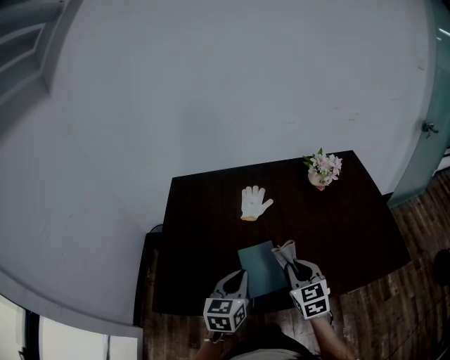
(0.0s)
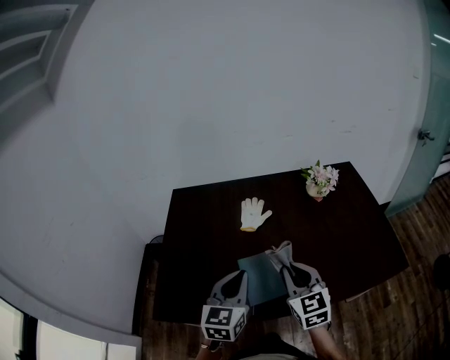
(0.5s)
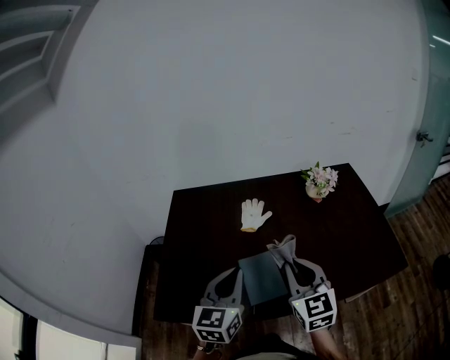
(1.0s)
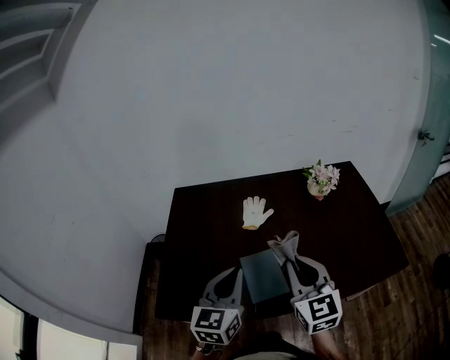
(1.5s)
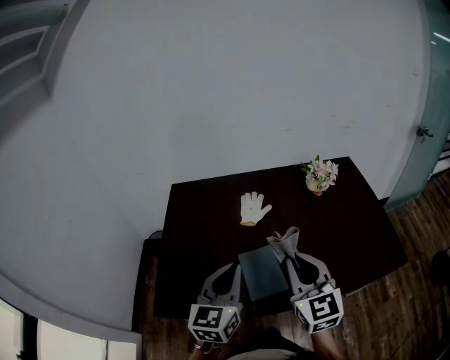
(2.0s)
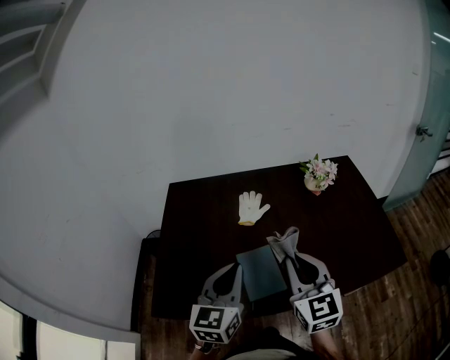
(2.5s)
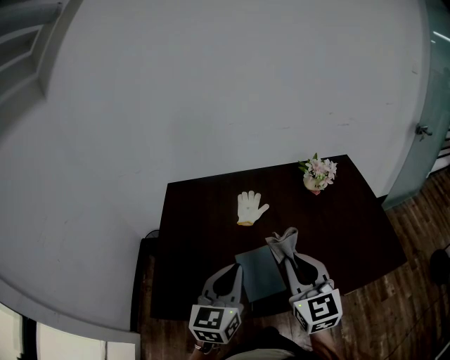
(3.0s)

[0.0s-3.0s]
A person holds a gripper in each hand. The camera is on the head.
0.0s to 1.5s: Both grippers travel together upward, some 15 cm.
1.5s to 3.0s: The grippers move only a little.

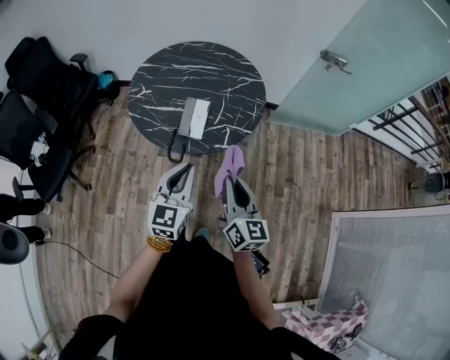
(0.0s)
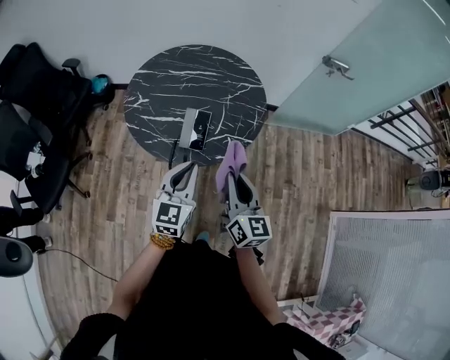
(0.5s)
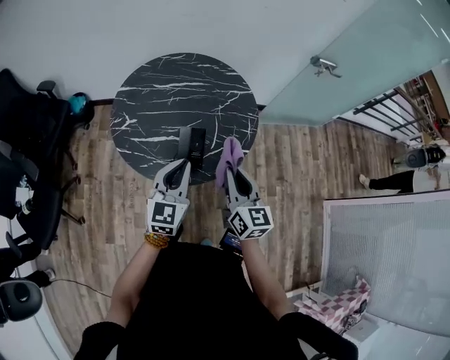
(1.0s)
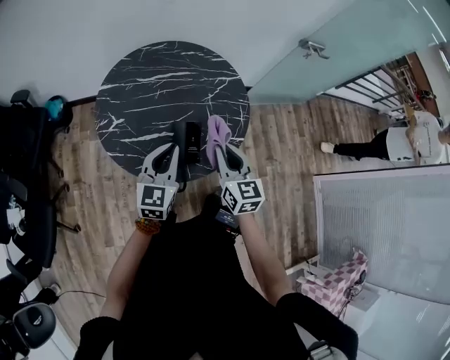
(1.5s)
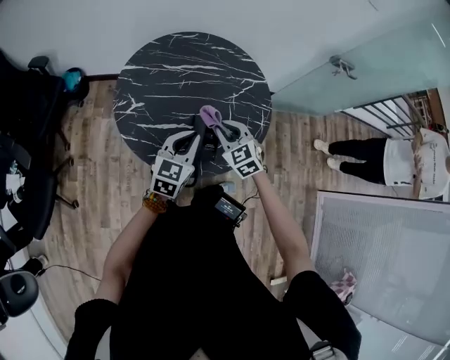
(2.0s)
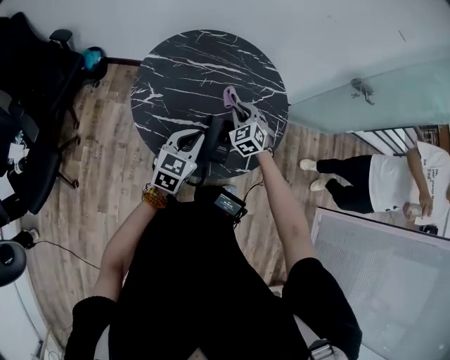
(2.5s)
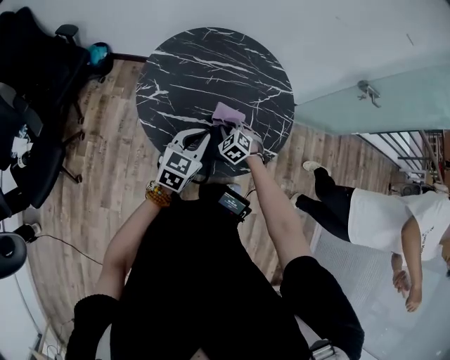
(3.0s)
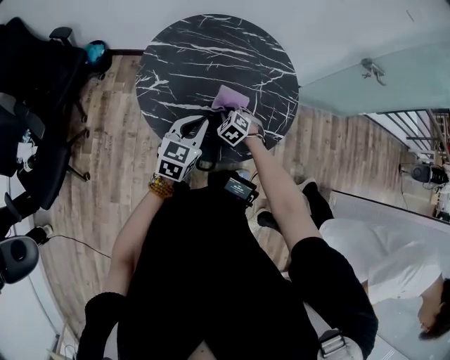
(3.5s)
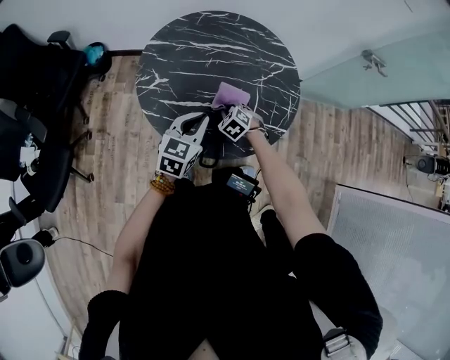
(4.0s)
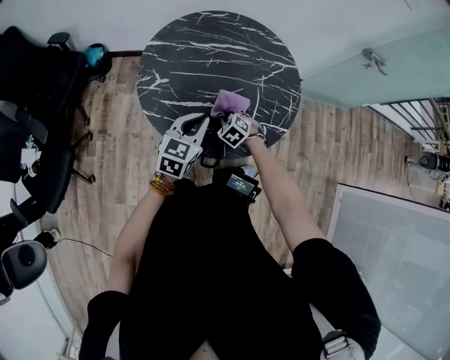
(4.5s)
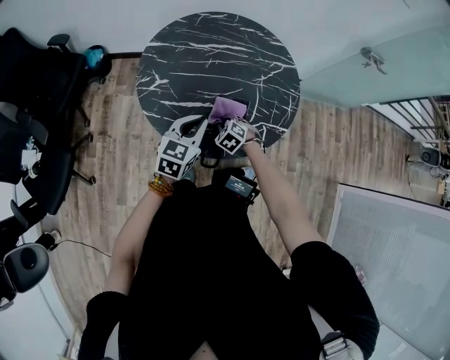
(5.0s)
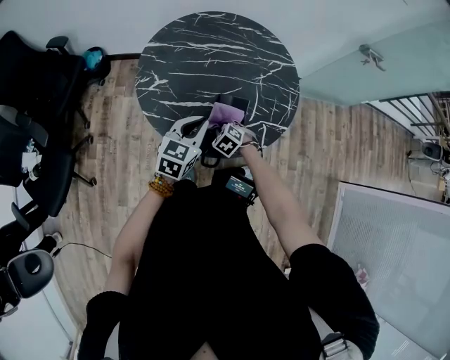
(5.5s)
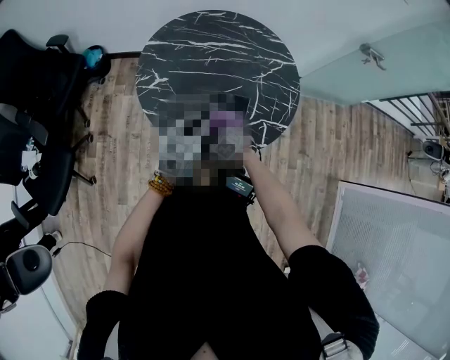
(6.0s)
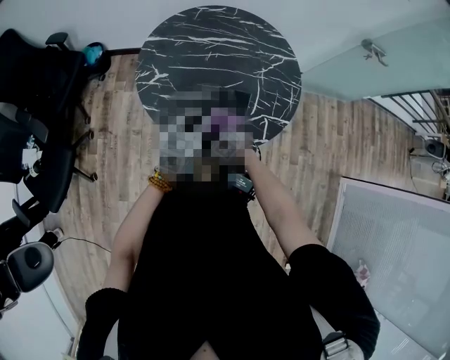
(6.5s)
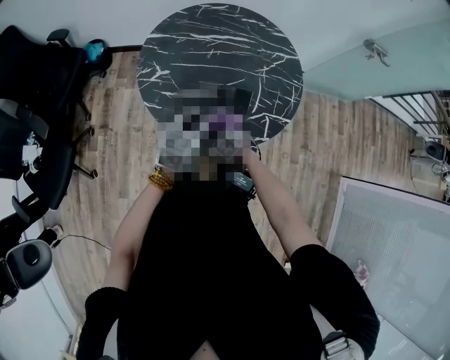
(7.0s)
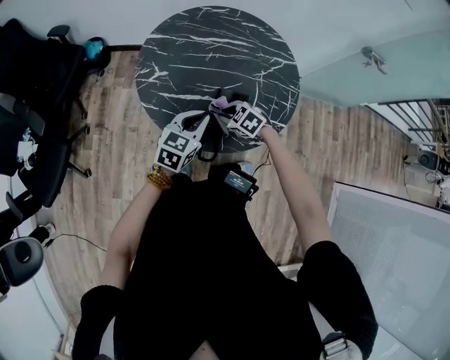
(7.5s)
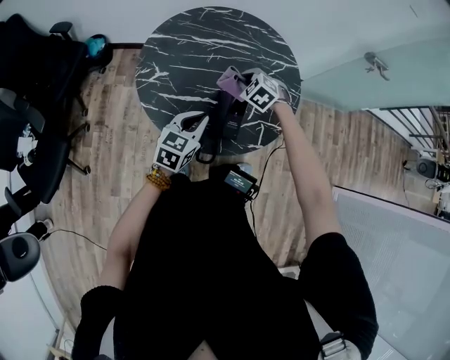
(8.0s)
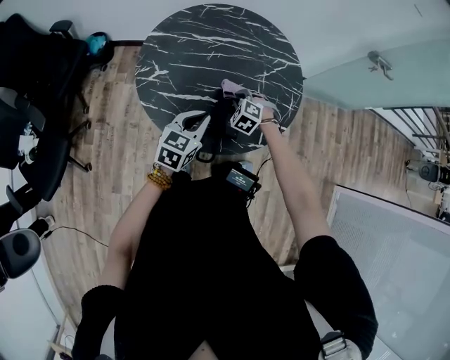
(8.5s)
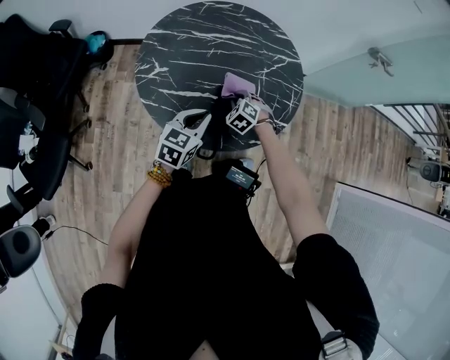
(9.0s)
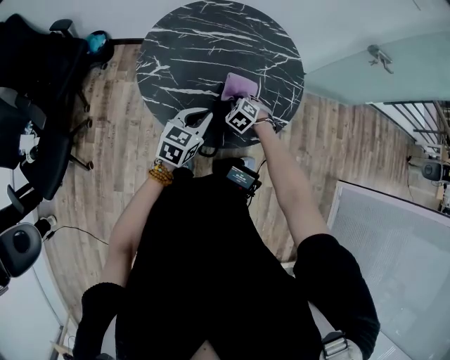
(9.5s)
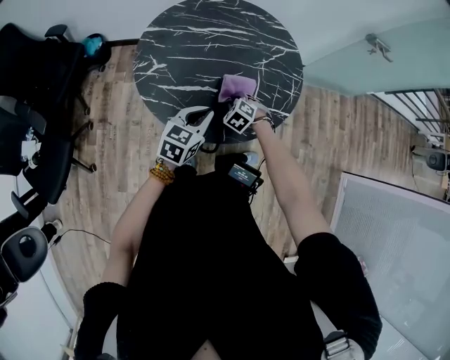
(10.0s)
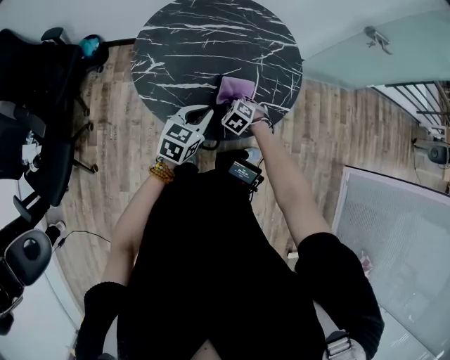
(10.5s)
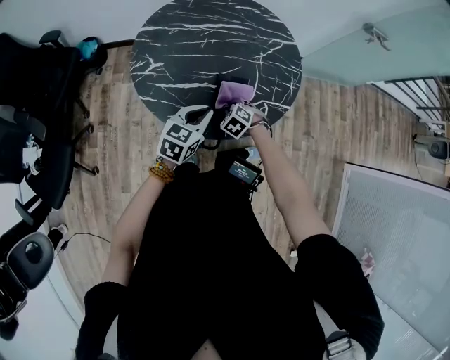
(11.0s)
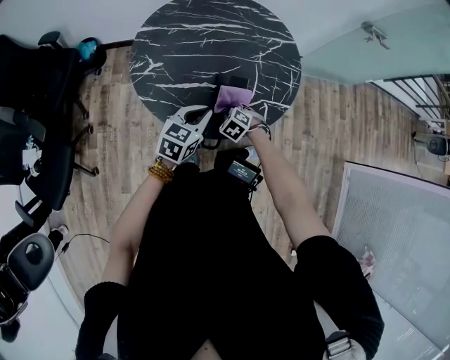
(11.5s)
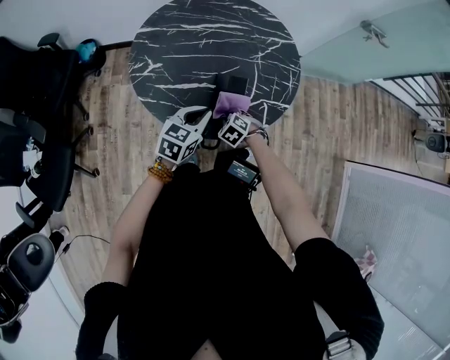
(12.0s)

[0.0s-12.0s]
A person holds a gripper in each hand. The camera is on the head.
0.0s to 2.0s: Both grippers travel together forward and to the left, roughly 30 cm. The right gripper rotates around the line of its fingers by roughly 50 degrees, counterclockwise from behind.
2.0s to 4.0s: The left gripper ends up approximately 5 cm from where it was; the right gripper heads downward, covering about 15 cm, and swivels about 30 degrees.
4.0s to 6.0s: The right gripper travels backward by about 10 cm.
6.0s to 8.0s: The right gripper shifts about 25 cm forward and upward.
8.0s to 10.0s: The right gripper shifts some 15 cm downward and backward.
10.0s to 12.0s: The right gripper goes some 10 cm backward.

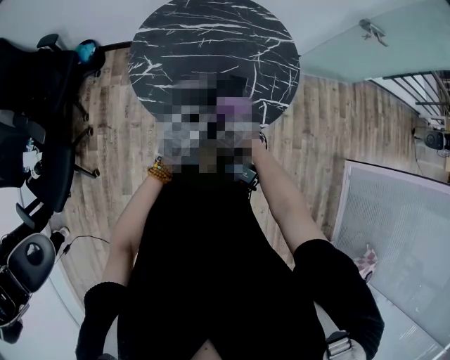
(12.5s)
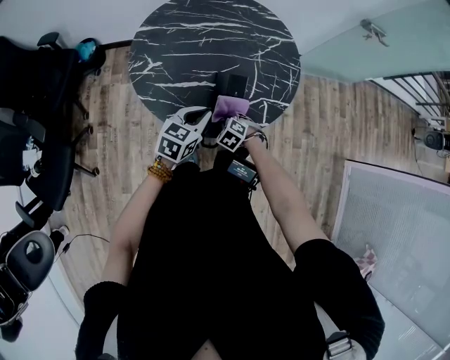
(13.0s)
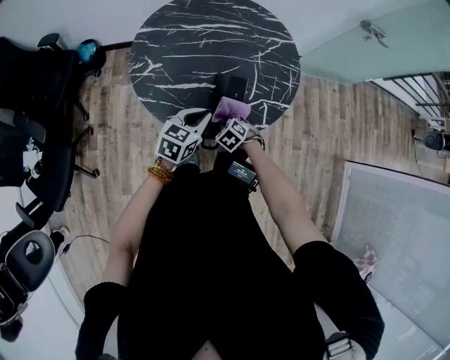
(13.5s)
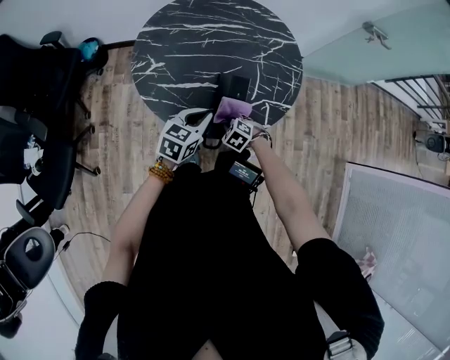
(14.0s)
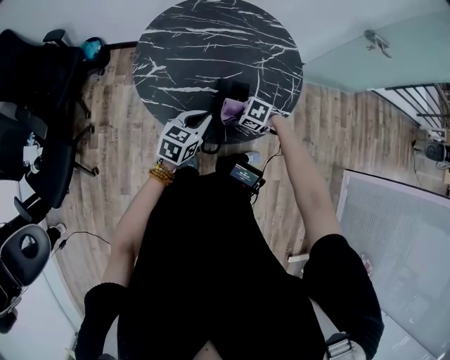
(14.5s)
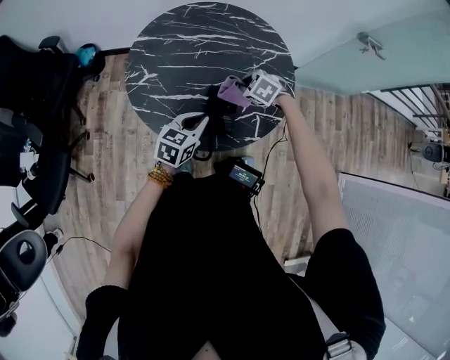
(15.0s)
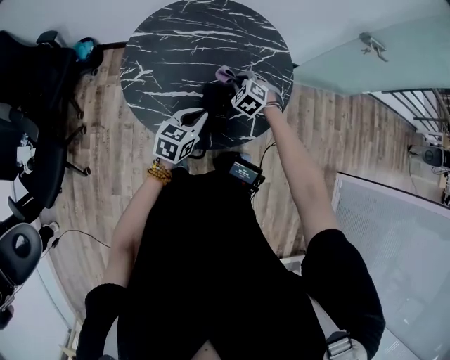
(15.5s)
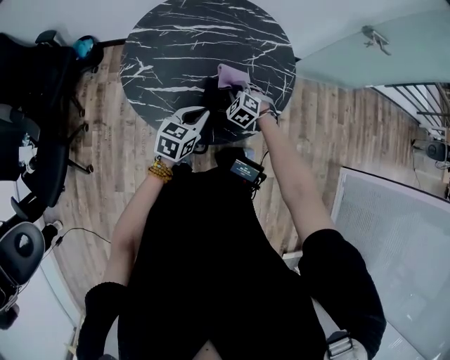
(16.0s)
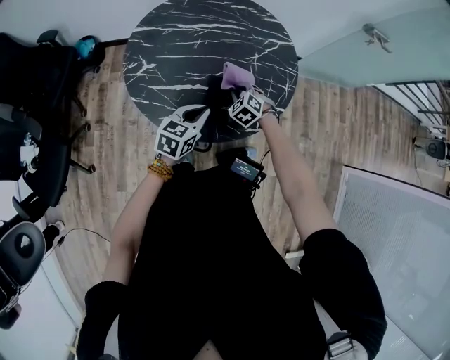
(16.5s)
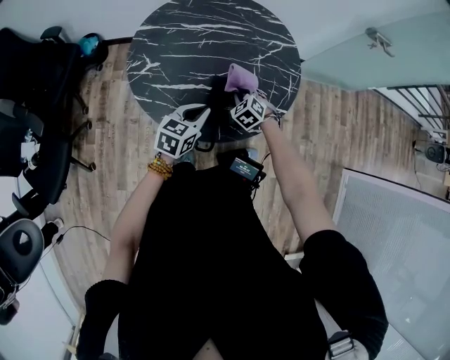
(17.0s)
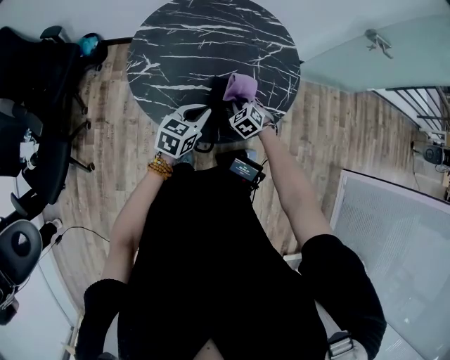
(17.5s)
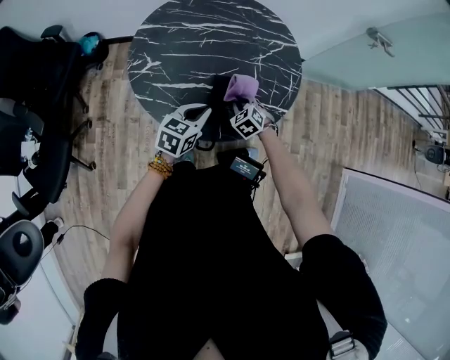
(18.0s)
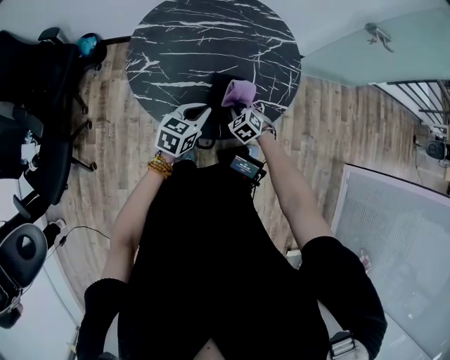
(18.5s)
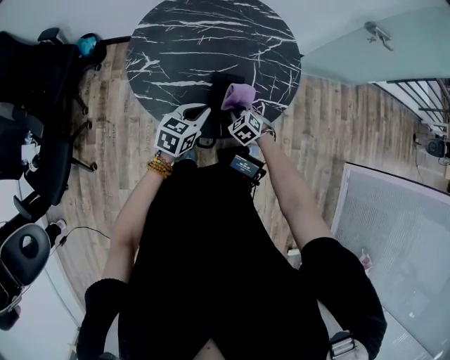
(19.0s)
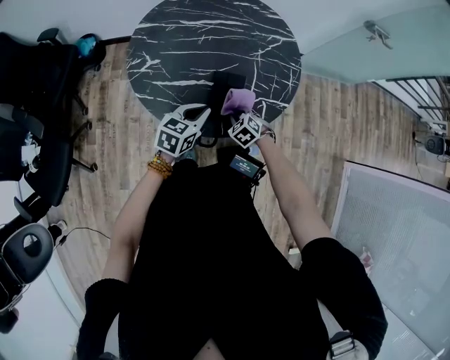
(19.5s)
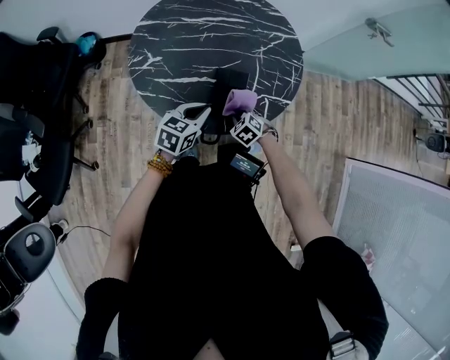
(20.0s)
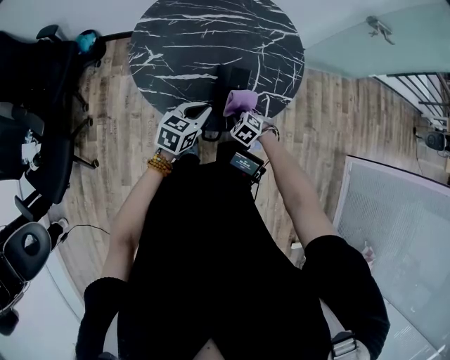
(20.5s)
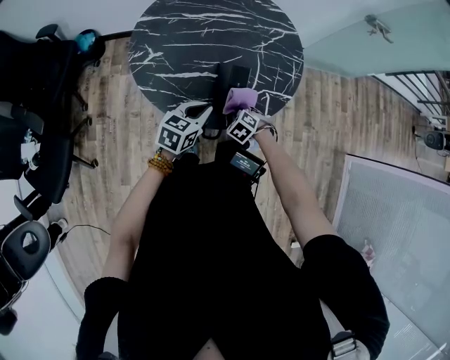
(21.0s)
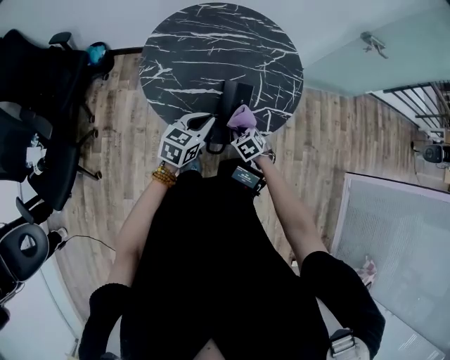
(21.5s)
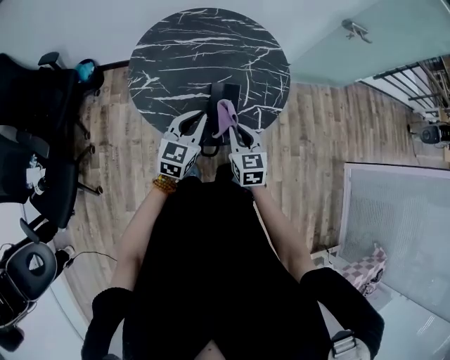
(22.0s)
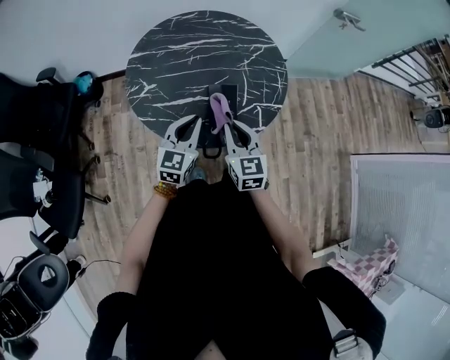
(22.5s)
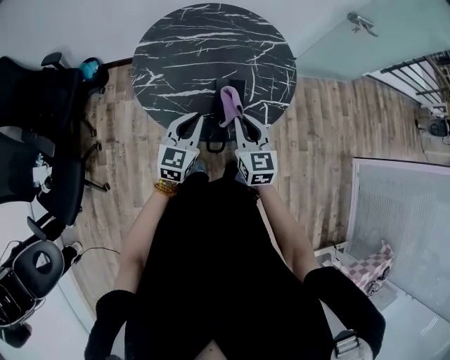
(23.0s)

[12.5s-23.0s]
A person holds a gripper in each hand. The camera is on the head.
12.5s to 14.5s: The right gripper travels upward by approximately 5 cm, and rotates approximately 30 degrees.
14.5s to 16.5s: The right gripper goes upward and returns, approximately 10 cm each way, and turns by some 40 degrees.
16.5s to 19.0s: The right gripper moves backward, some 10 cm.
19.0s to 21.0s: The right gripper is displaced backward by about 5 cm.
21.0s to 23.0s: The right gripper moves upward, about 25 cm, and points its fingers approximately 50 degrees further upward. The left gripper shifts some 10 cm upward, and turns by some 30 degrees.

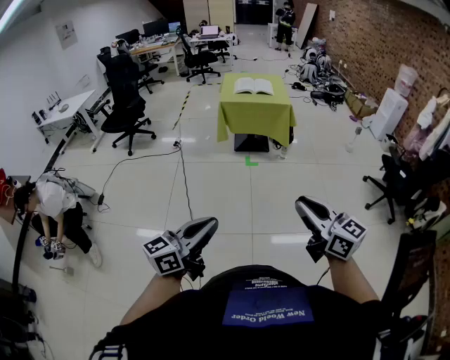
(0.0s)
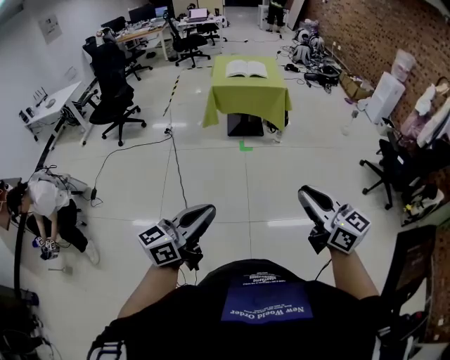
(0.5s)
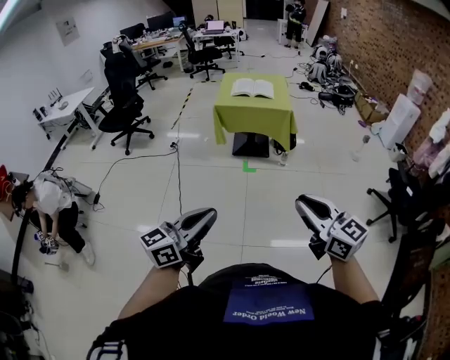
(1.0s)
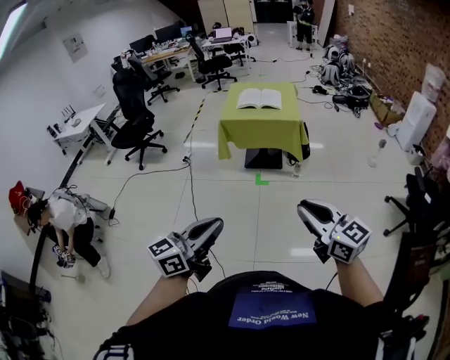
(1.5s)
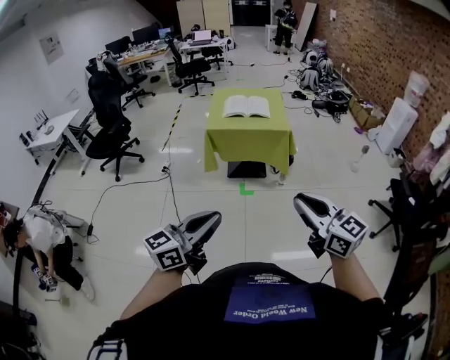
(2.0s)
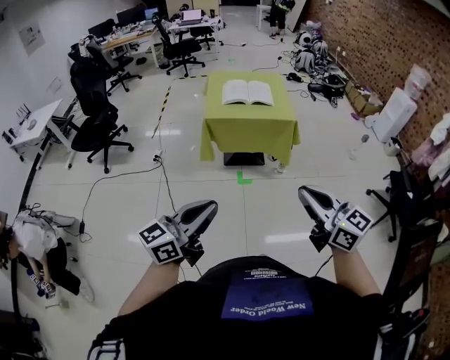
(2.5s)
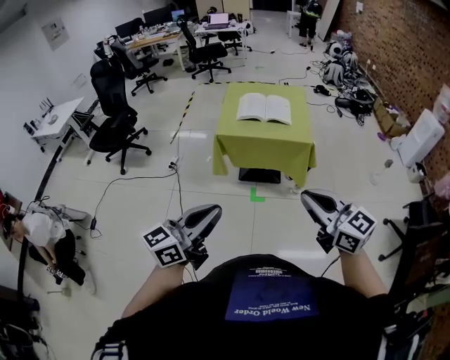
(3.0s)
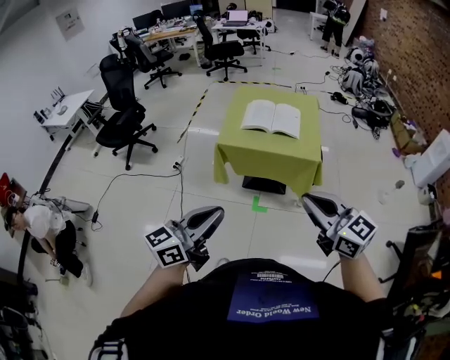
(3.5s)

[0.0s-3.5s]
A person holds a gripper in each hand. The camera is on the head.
0.0s to 2.0s: Both grippers travel together forward, roughly 35 cm.
2.0s to 3.5s: The two grippers go some 35 cm forward.
